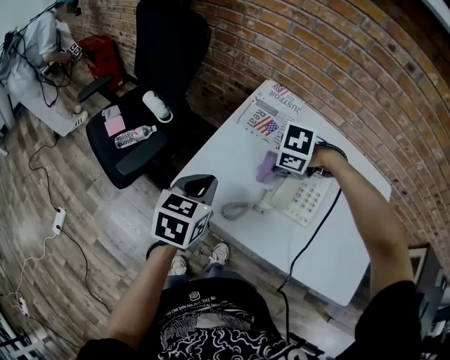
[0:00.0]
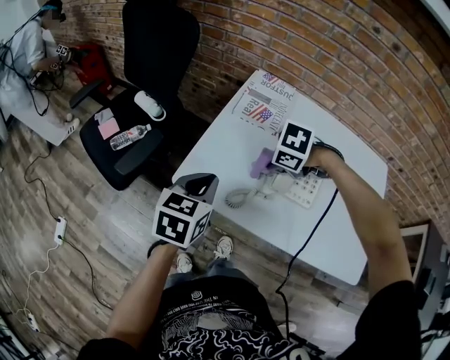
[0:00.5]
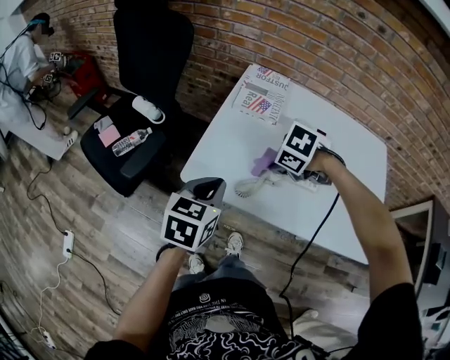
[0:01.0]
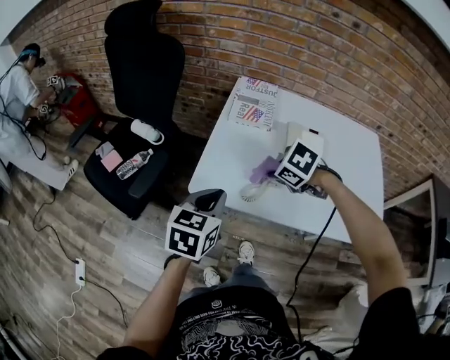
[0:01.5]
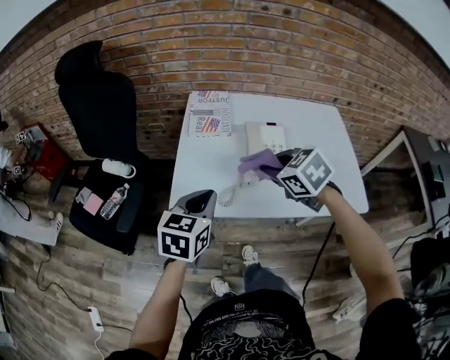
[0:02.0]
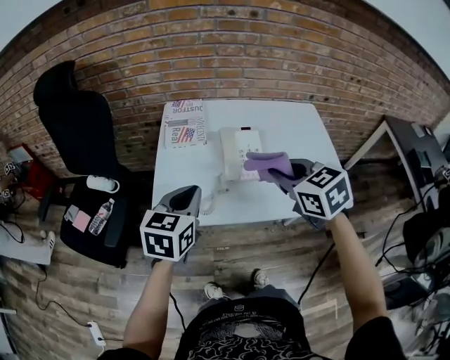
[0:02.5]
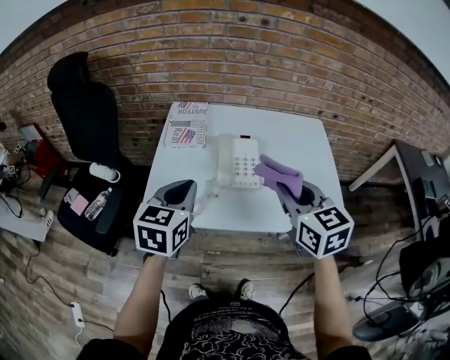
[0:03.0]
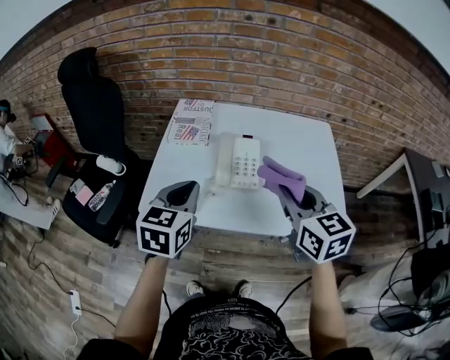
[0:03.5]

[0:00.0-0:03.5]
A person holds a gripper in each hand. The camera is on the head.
0.0 to 2.0 s: The right gripper ends up some 20 cm from where it was, and angles its fingers upward, by some 30 degrees; the left gripper changes place by approximately 10 cm, and changes its angle by about 30 degrees.
2.0 to 3.5 s: The left gripper goes approximately 10 cm to the right and upward; the right gripper goes some 20 cm to the right and upward, and tilts its fingers some 30 degrees upward.

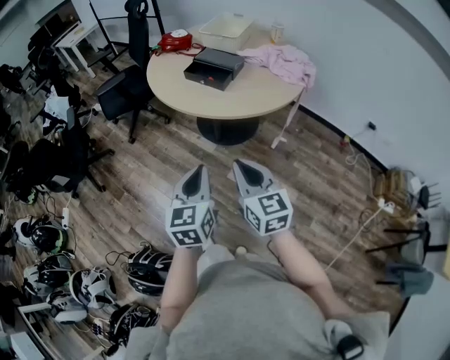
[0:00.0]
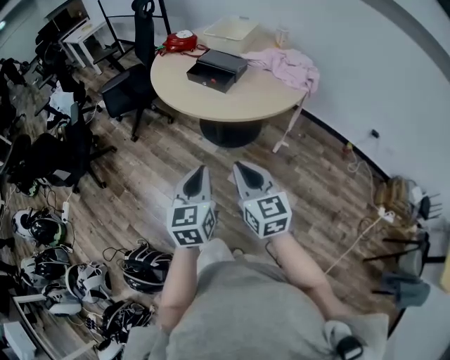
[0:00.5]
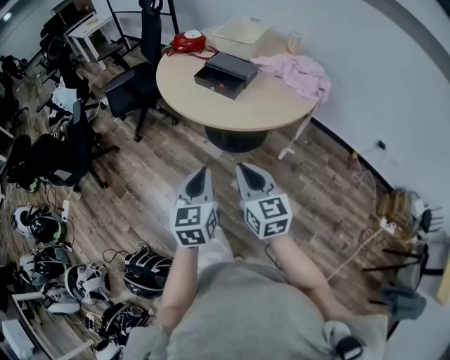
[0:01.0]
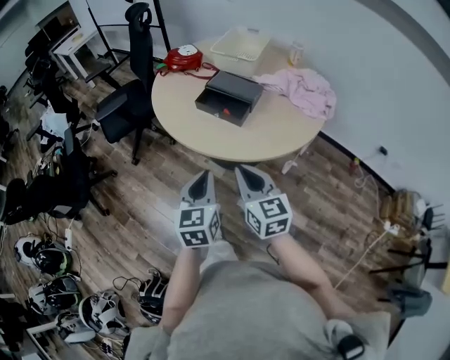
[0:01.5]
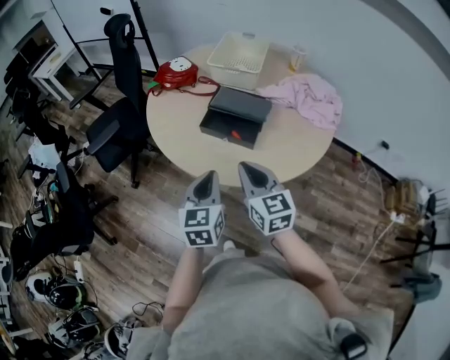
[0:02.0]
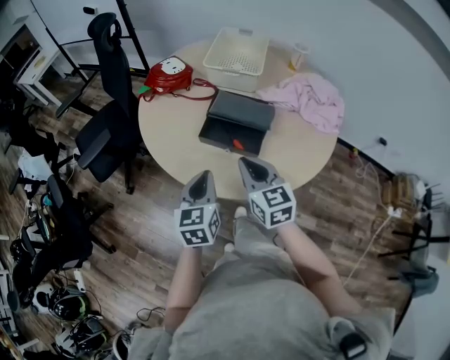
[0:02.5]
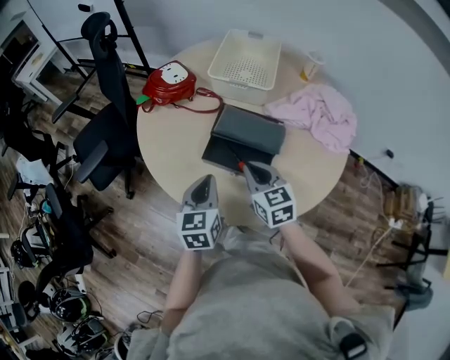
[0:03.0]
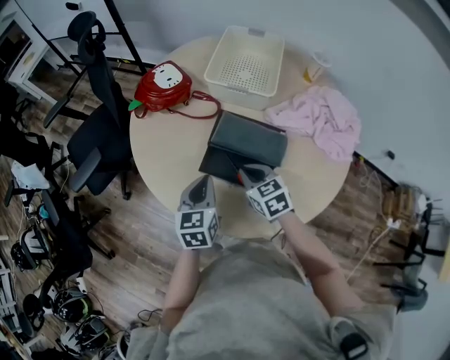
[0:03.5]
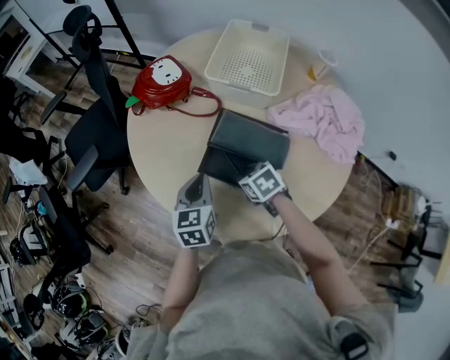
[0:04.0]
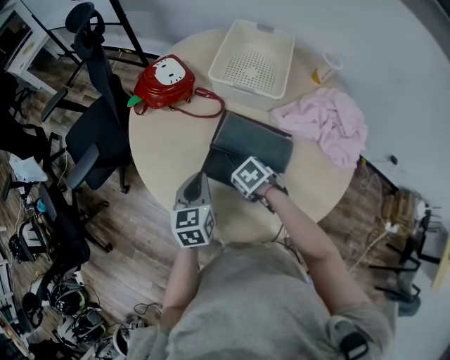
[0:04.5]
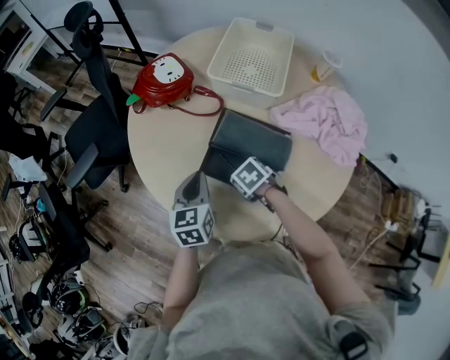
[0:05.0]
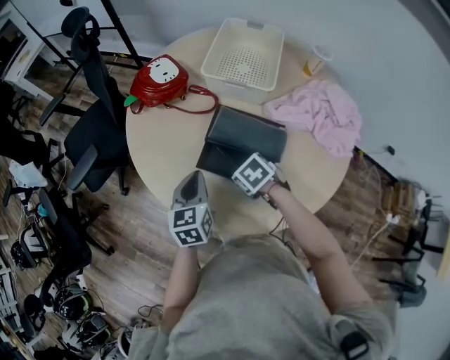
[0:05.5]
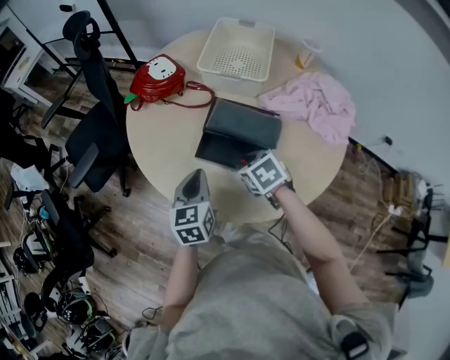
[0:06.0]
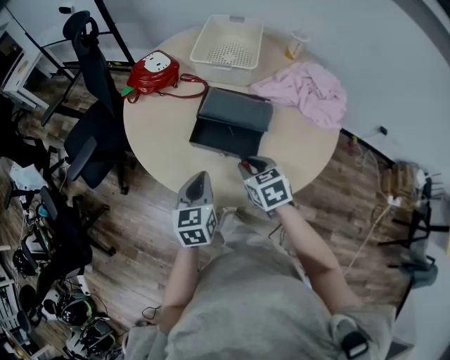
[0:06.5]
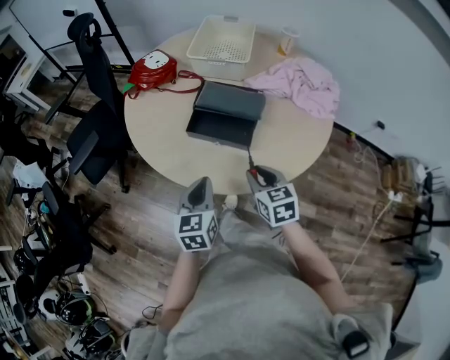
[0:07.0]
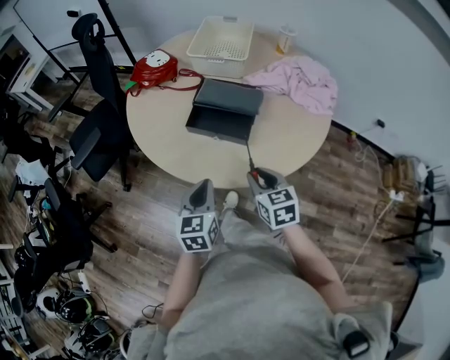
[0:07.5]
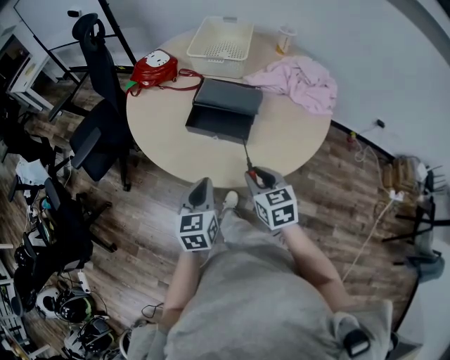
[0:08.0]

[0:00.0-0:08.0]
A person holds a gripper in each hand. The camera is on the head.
0.0 to 2.0 s: Both grippers travel together forward, roughly 35 cm.
2.0 to 4.0 s: The left gripper moves forward, roughly 25 cm; the right gripper shifts some 30 cm forward and downward, points its fingers approximately 50 degrees further downward, and opens up.
4.0 to 6.0 s: The right gripper is displaced upward by approximately 5 cm.
6.0 to 8.0 s: The two grippers go about 15 cm backward. The right gripper changes its angle by about 30 degrees.

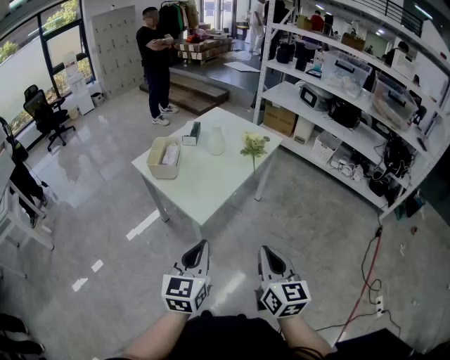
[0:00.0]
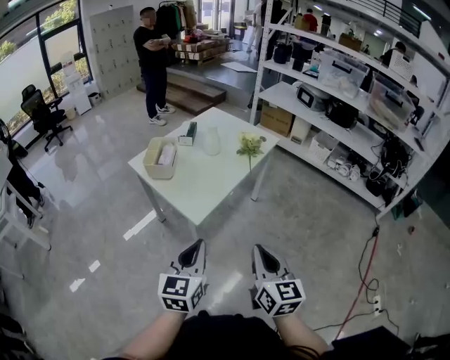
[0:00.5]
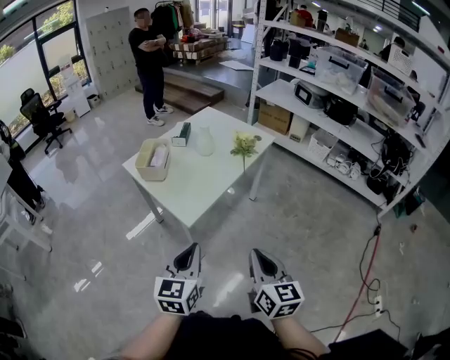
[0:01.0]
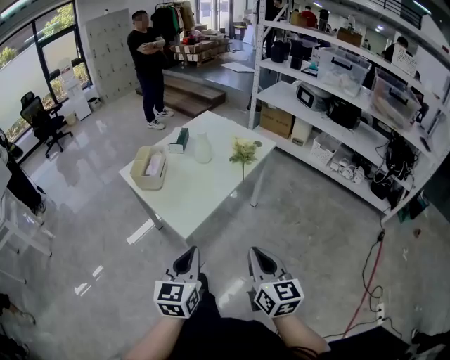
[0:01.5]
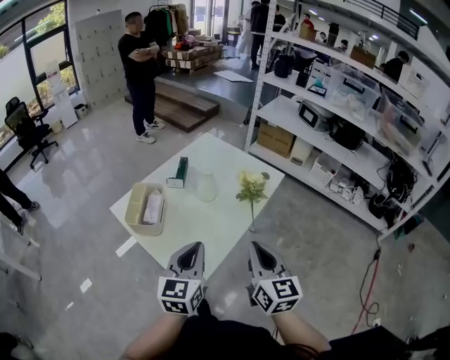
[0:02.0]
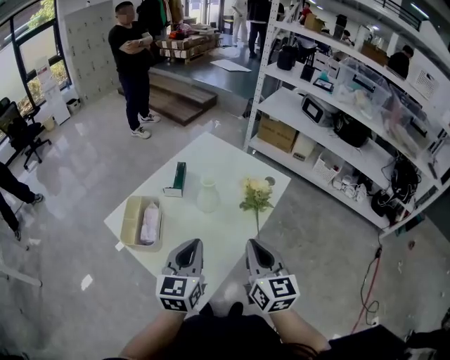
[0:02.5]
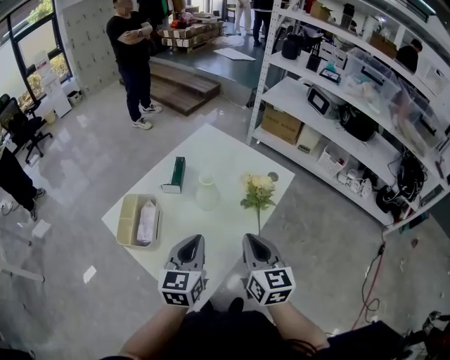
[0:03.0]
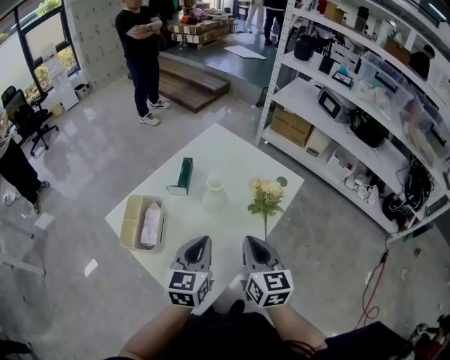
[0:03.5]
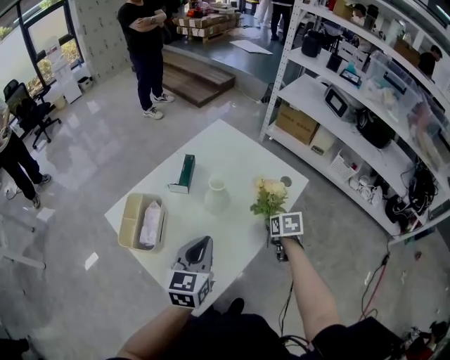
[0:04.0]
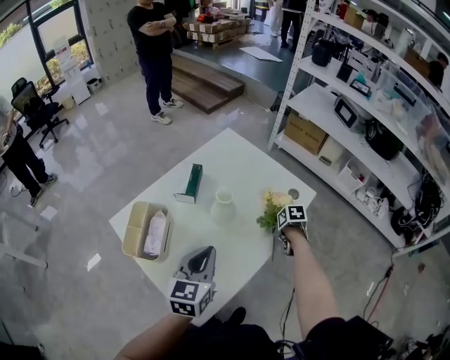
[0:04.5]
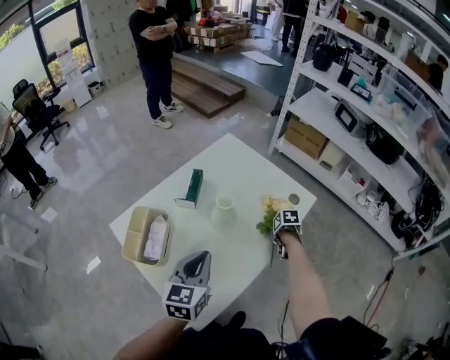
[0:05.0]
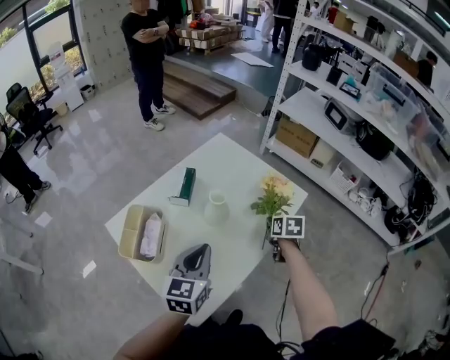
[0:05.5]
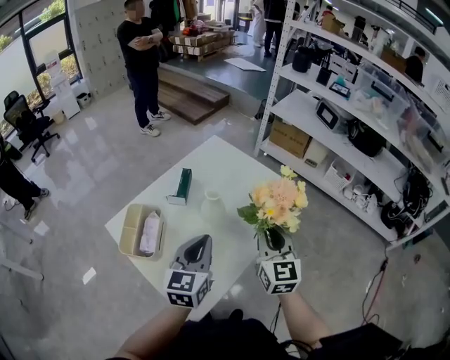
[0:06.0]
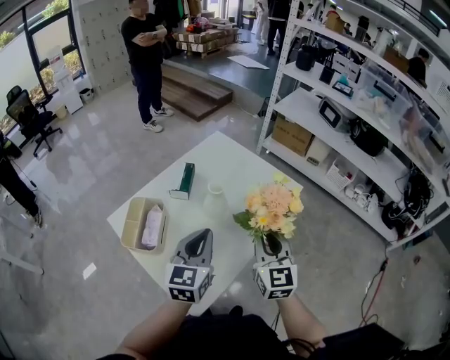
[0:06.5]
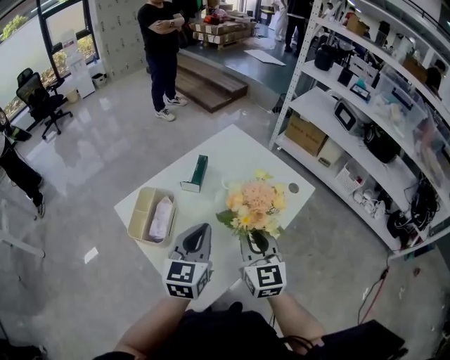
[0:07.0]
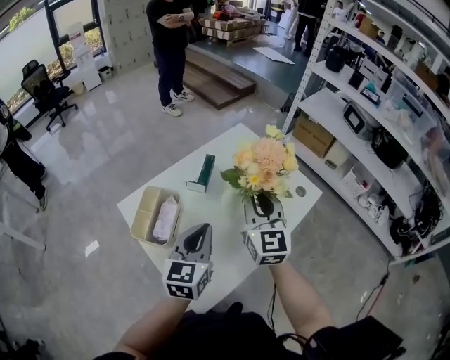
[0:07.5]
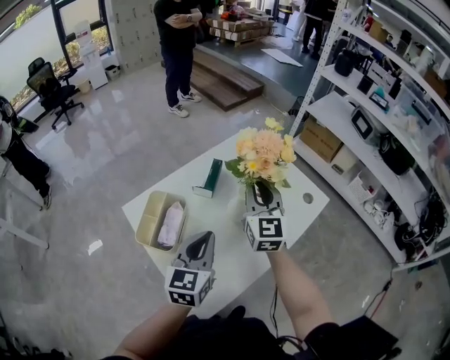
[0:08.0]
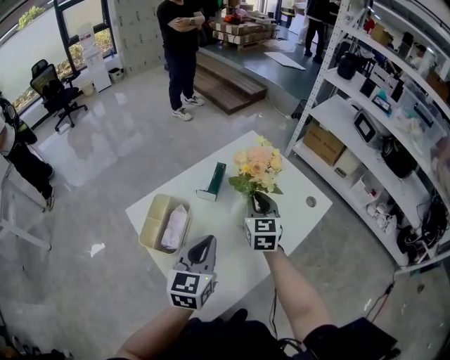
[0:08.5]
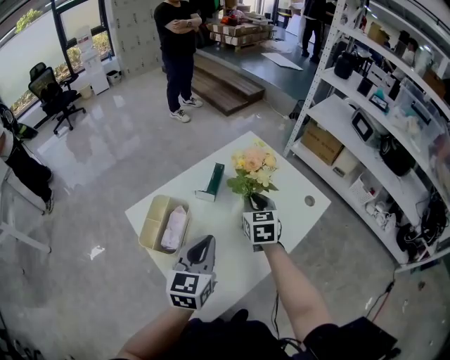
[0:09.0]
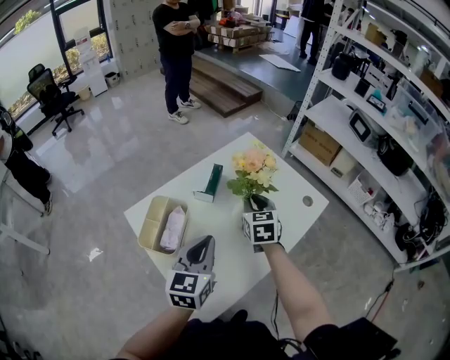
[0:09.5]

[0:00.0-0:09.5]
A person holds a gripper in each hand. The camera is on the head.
0.0 to 2.0 s: Both grippers travel together forward, some 30 cm.
2.0 to 4.0 s: The left gripper travels forward by approximately 15 cm; the right gripper goes approximately 35 cm forward and downward, tilts its fingers about 50 degrees downward, and opens.
4.0 to 5.5 s: The right gripper travels downward and back again, approximately 10 cm each way, and closes up.
5.5 to 7.5 s: The left gripper ends up about 5 cm from where it was, while the right gripper moves upward and to the left, about 30 cm, and tips its fingers upward by roughly 50 degrees.
7.5 to 9.5 s: The right gripper shifts roughly 15 cm downward and forward, and turns by approximately 30 degrees.

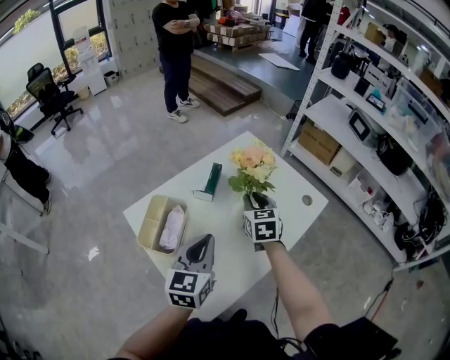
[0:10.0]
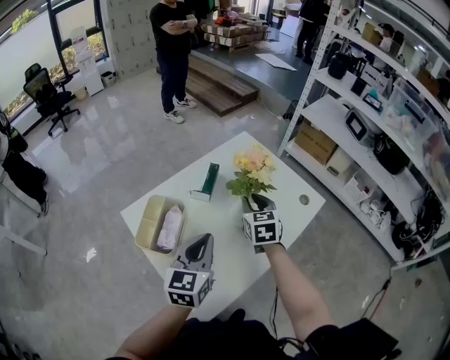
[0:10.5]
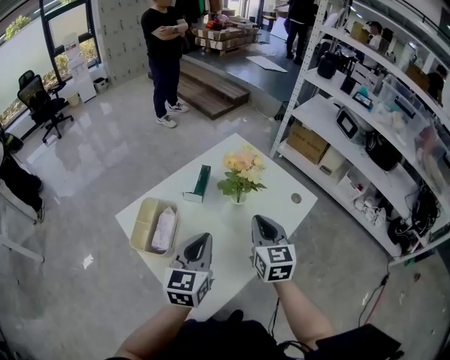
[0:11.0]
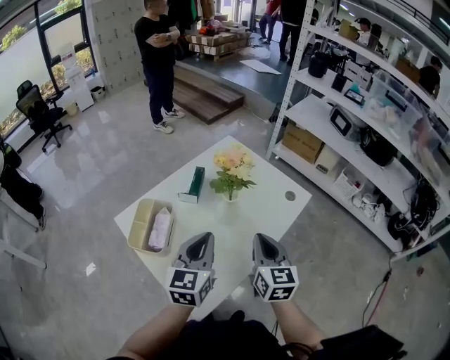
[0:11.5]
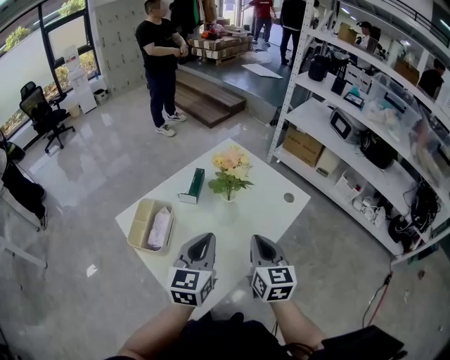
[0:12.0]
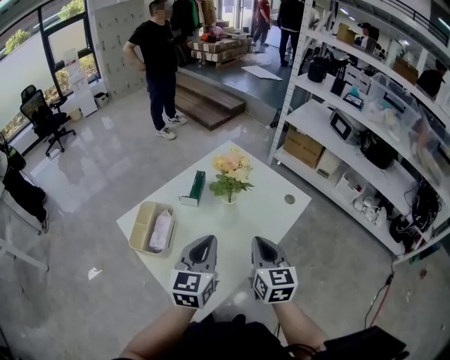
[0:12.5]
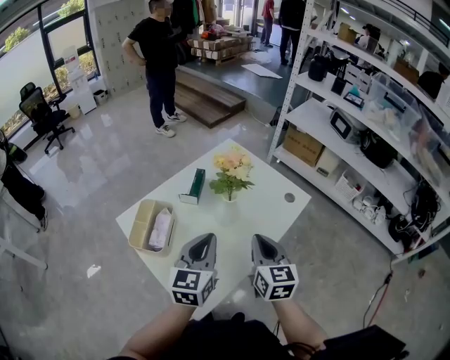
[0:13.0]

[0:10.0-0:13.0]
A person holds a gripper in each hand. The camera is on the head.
10.0 to 11.5 s: The right gripper travels backward and to the right by some 20 cm, while the left gripper changes place by some 5 cm.
11.5 to 13.0 s: The grippers move only a little.

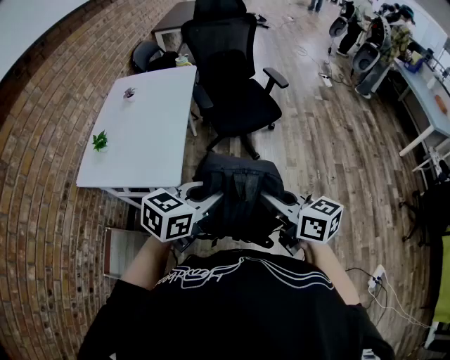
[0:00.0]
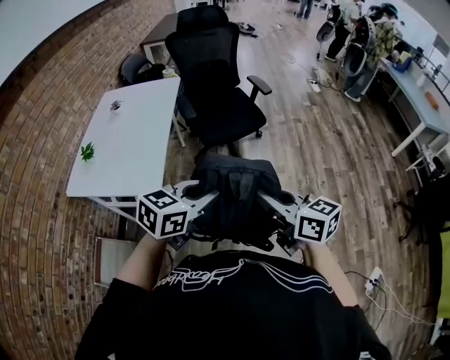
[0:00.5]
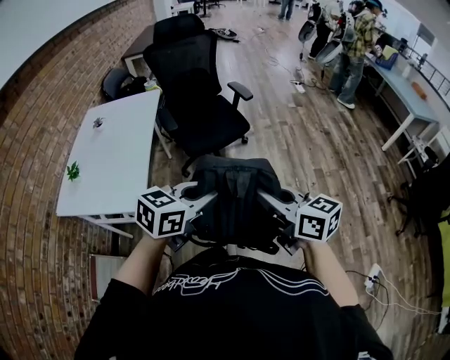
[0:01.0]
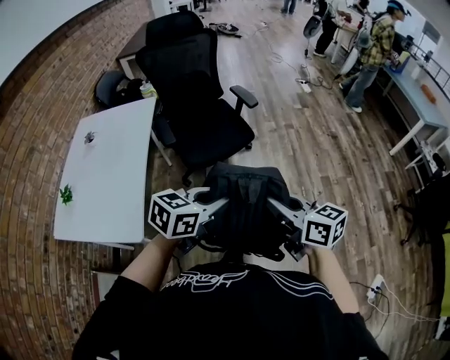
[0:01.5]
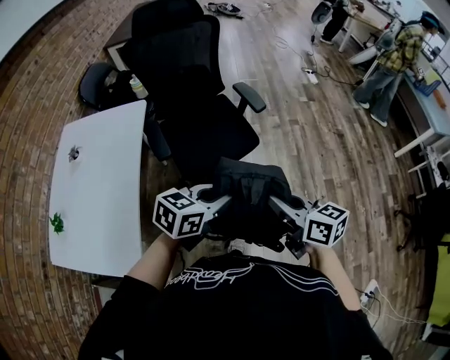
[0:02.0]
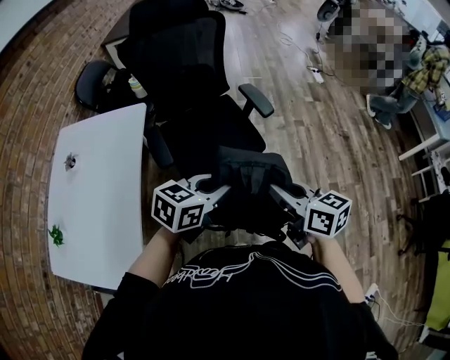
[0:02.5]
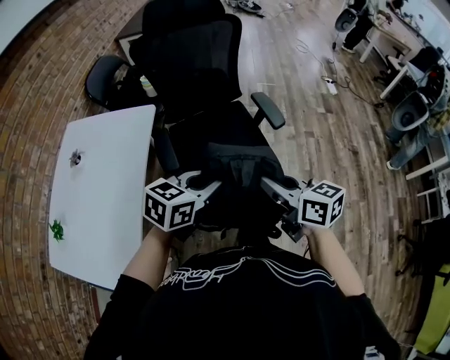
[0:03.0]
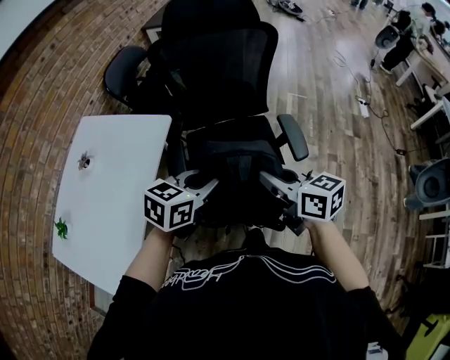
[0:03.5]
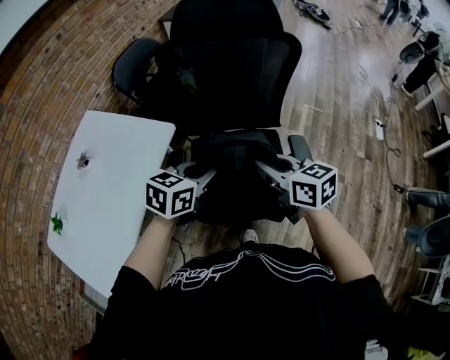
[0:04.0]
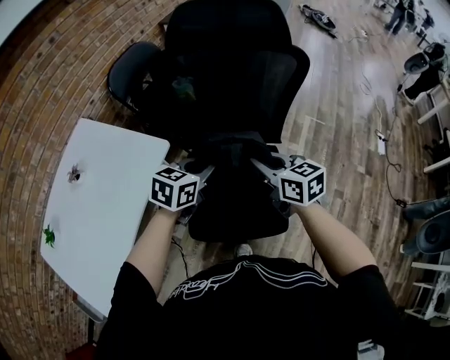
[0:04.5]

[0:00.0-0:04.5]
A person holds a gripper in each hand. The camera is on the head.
0.0 to 2.0 s: Both grippers move forward, approximately 35 cm.
2.0 to 4.5 s: Both grippers are carried some 50 cm. The right gripper turns by roughly 30 degrees. Meanwhile the left gripper changes its angle by approximately 40 degrees.
